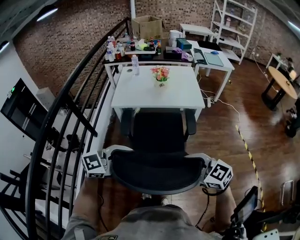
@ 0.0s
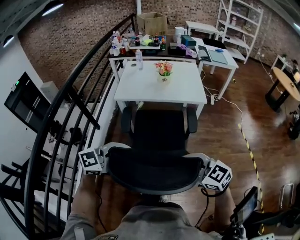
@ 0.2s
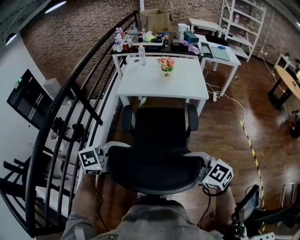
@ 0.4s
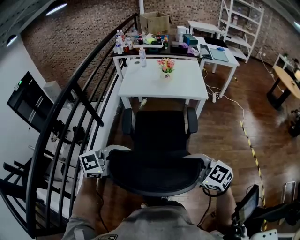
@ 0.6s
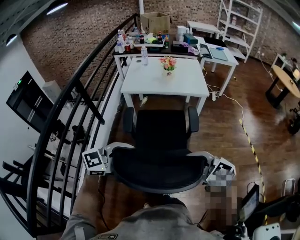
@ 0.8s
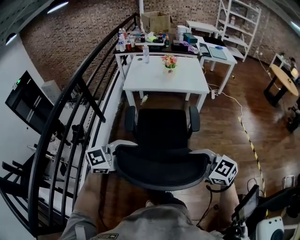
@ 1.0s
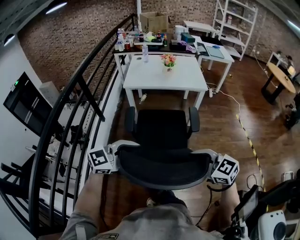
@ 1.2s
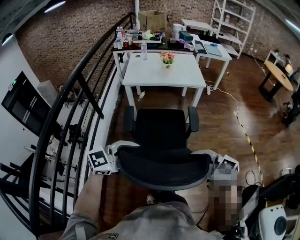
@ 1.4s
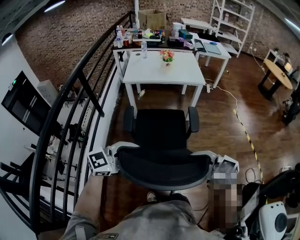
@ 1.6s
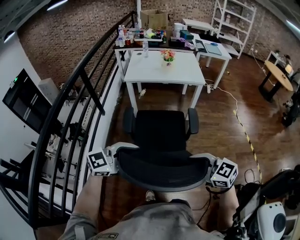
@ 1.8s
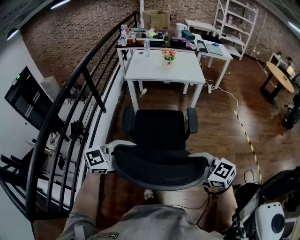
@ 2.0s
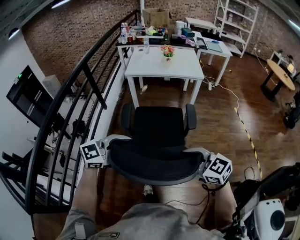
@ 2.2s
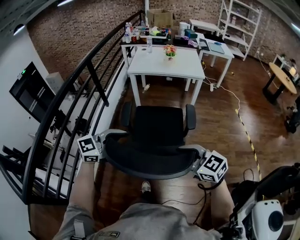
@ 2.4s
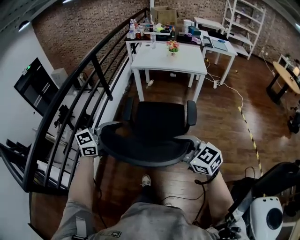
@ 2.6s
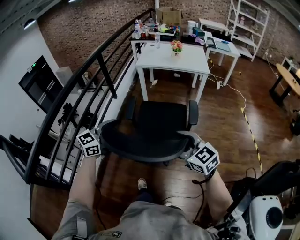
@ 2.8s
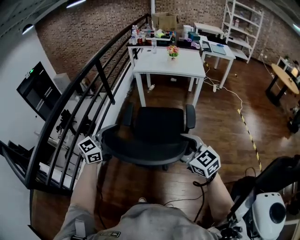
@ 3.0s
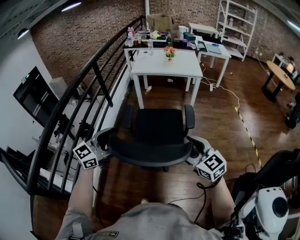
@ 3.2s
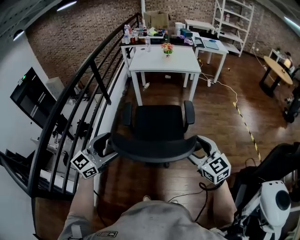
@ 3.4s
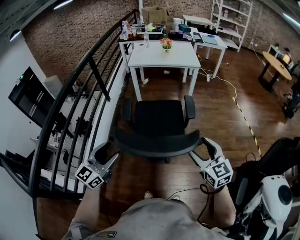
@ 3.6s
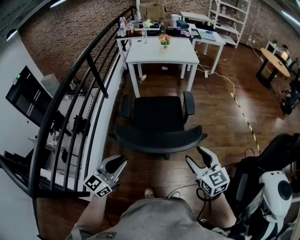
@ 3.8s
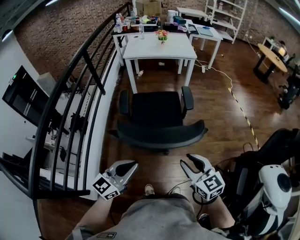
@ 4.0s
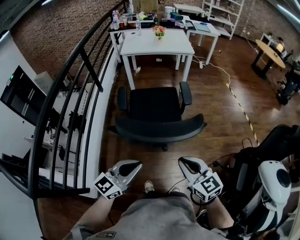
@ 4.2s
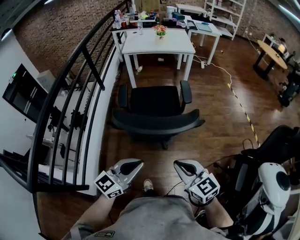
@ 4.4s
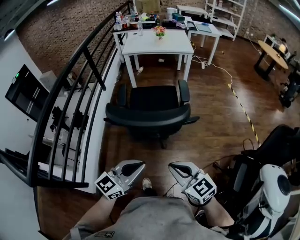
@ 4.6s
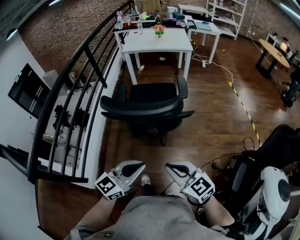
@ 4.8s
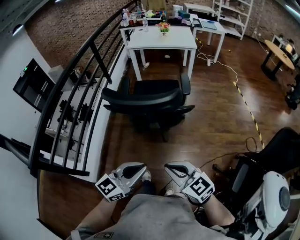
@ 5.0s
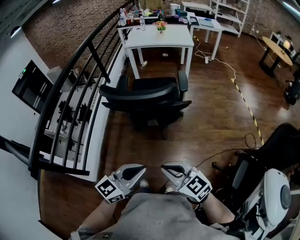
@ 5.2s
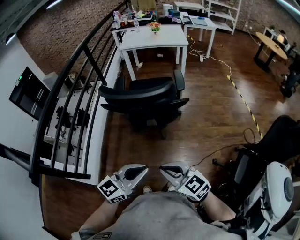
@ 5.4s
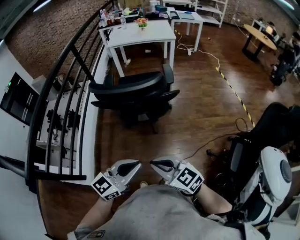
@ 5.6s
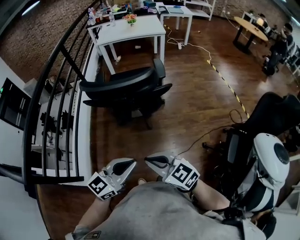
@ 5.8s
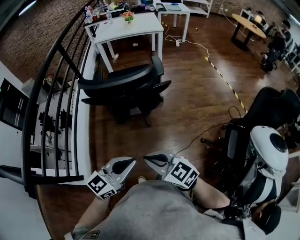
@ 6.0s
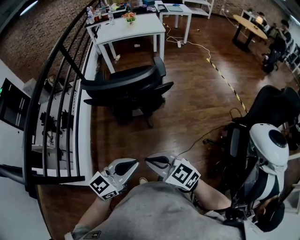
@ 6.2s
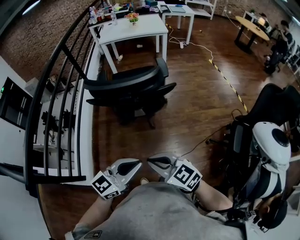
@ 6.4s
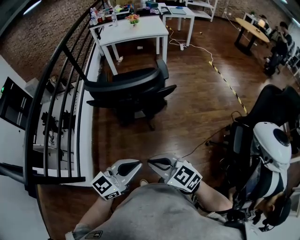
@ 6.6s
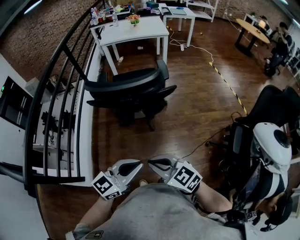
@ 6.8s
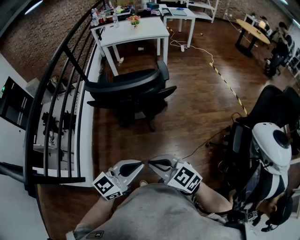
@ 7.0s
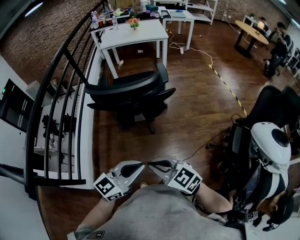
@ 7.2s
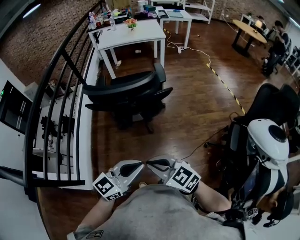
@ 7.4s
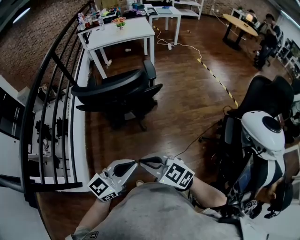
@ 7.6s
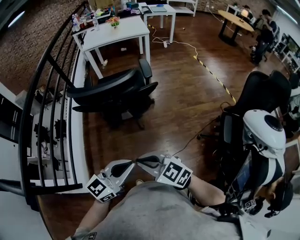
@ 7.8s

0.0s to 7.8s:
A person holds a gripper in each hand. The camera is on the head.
0.0s to 1.6s: The left gripper changes place by roughly 25 cm. Meanwhile the right gripper ends up about 25 cm from where it was.
1.6s to 3.2s: The left gripper moves about 15 cm, turns by roughly 30 degrees, and opens, while the right gripper moves about 15 cm, and opens.
3.2s to 4.6s: The left gripper goes approximately 25 cm backward and to the right, and closes up; the right gripper shifts some 20 cm backward, and closes.
4.6s to 6.2s: The grippers both shift backward by approximately 10 cm.
6.2s to 7.8s: There are only small adjustments of the grippers.

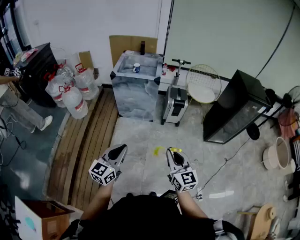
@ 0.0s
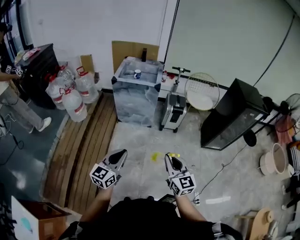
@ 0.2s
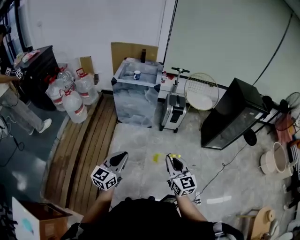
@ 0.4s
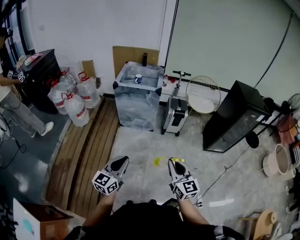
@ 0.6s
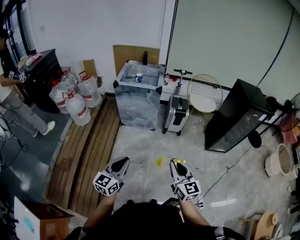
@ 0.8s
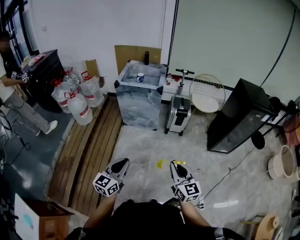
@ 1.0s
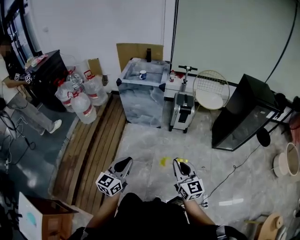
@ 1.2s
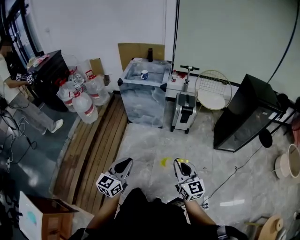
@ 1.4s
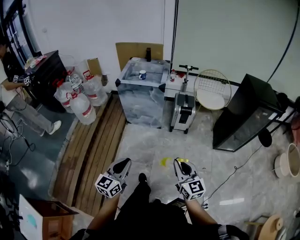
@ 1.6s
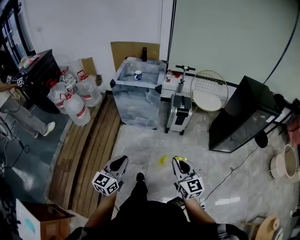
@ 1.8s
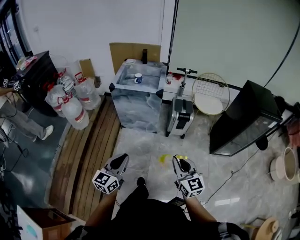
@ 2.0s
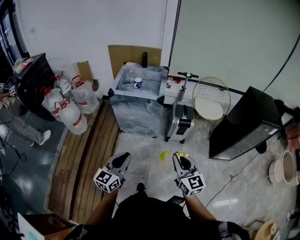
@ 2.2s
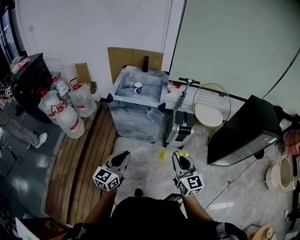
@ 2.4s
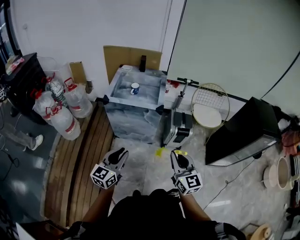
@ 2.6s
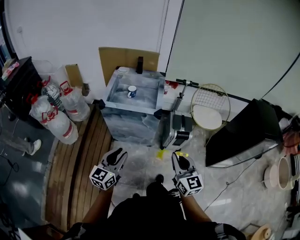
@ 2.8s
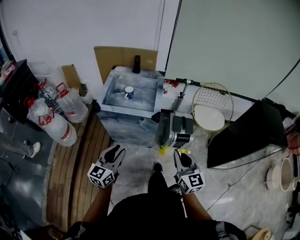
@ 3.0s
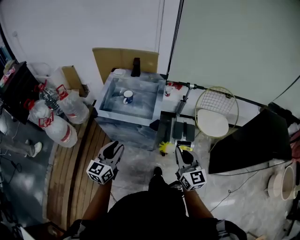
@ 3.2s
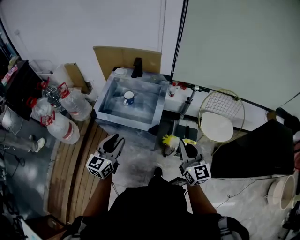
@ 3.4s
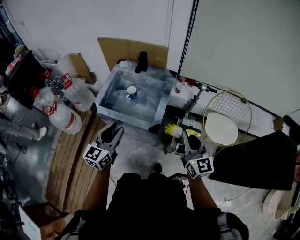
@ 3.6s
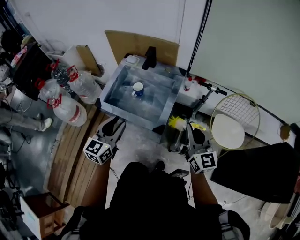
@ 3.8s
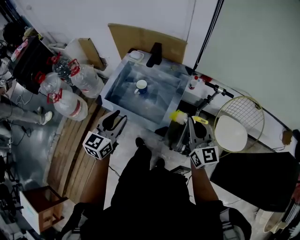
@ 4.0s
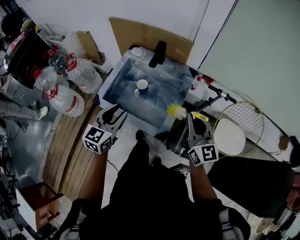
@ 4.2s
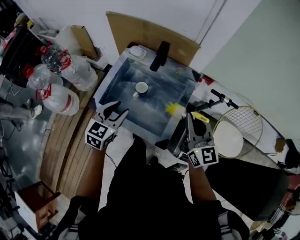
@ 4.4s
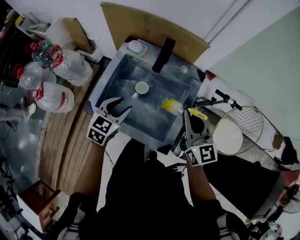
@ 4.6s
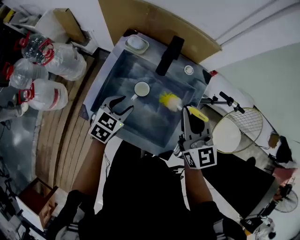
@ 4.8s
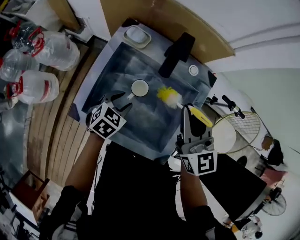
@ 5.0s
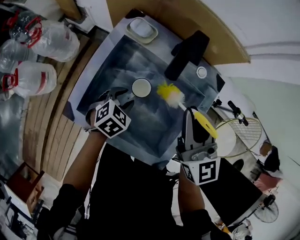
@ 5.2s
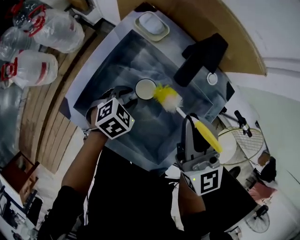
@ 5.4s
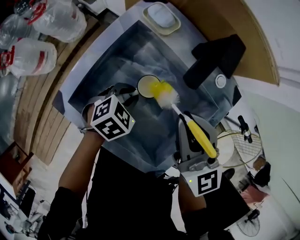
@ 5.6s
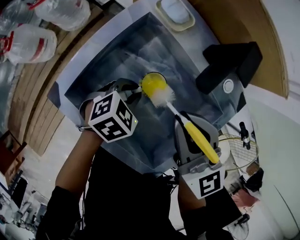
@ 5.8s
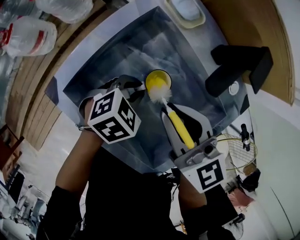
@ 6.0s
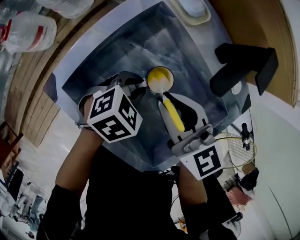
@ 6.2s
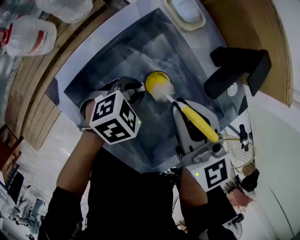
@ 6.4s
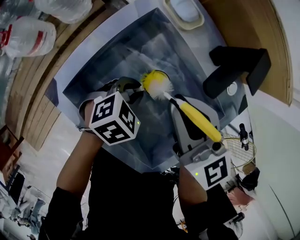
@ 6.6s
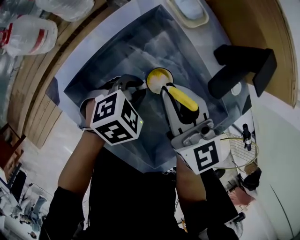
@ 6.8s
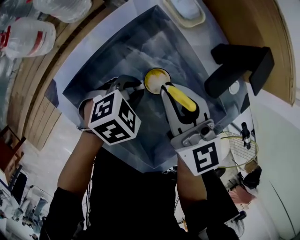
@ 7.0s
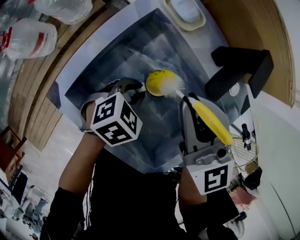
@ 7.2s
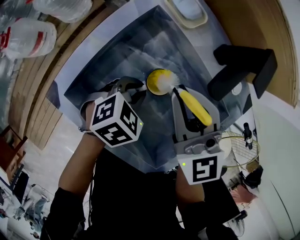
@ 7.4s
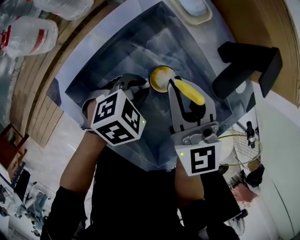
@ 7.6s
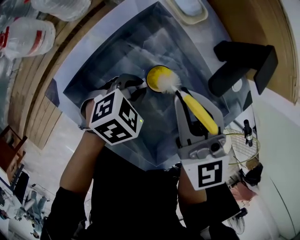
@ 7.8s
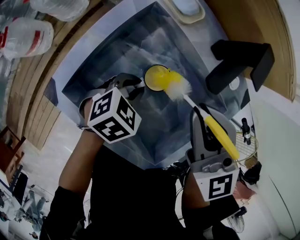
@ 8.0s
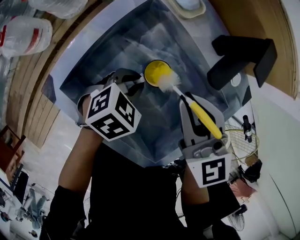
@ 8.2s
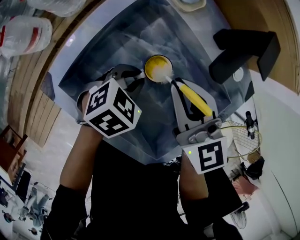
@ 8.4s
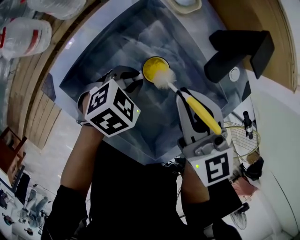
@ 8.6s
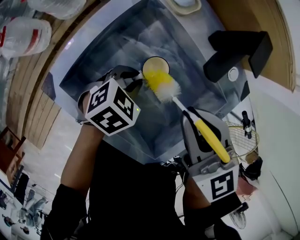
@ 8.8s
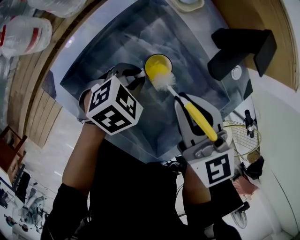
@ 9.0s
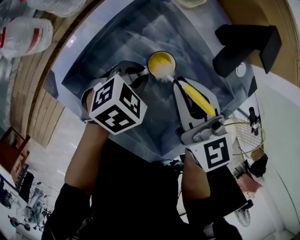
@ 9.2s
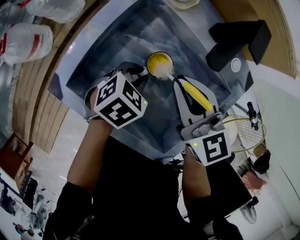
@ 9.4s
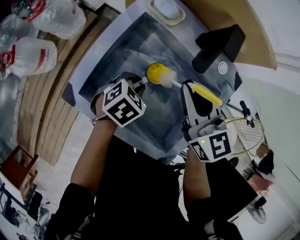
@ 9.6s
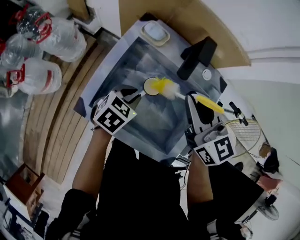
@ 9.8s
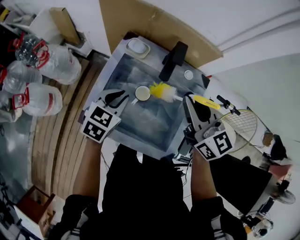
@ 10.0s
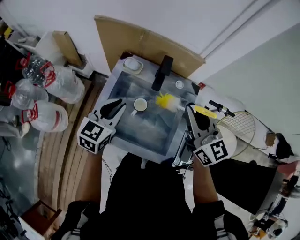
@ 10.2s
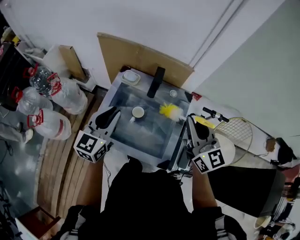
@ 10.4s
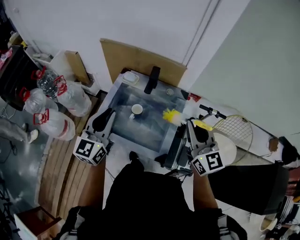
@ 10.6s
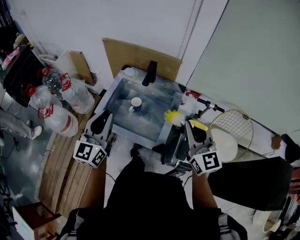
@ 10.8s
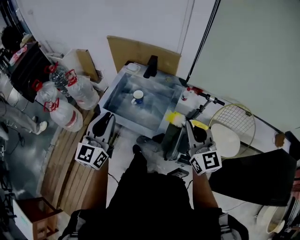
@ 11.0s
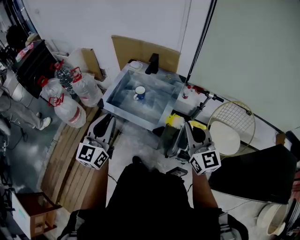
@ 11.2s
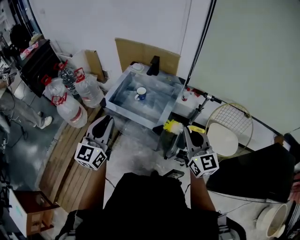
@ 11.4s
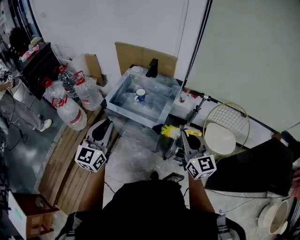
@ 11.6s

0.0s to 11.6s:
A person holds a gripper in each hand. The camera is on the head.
0.0s to 1.4s: The right gripper travels to the right by approximately 5 cm; the left gripper ends up some 5 cm from where it was.
1.4s to 2.8s: Both grippers are carried forward, some 40 cm. The left gripper opens.
2.8s to 4.4s: The two grippers travel together, forward, approximately 50 cm. The left gripper rotates roughly 30 degrees.
4.4s to 5.8s: The right gripper moves to the left, forward and downward, roughly 30 cm, and turns by approximately 30 degrees, while the left gripper is displaced downward and forward by about 30 cm, changes its angle by roughly 30 degrees, and closes its fingers.
5.8s to 7.2s: The right gripper swings up and down, approximately 10 cm each way, with 3 reversals.
7.2s to 8.8s: The right gripper goes up and down, approximately 10 cm each way, reversing 3 times.
8.8s to 10.2s: The right gripper moves upward and to the right, about 20 cm, and rotates approximately 30 degrees. Meanwhile the left gripper goes roughly 30 cm upward, and tips its fingers upward by some 30 degrees.
10.2s to 11.6s: Both grippers are carried backward, about 40 cm. The left gripper moves upward, about 20 cm, and swivels some 30 degrees.

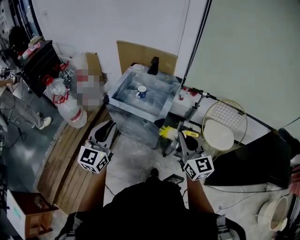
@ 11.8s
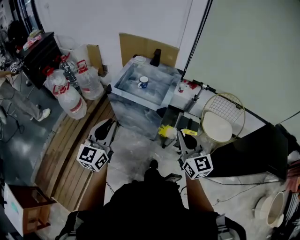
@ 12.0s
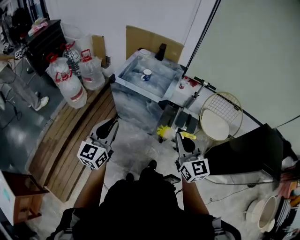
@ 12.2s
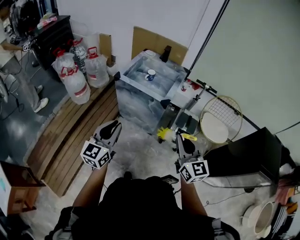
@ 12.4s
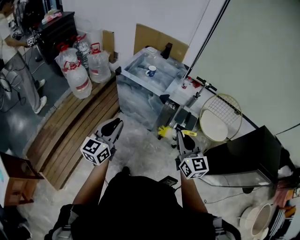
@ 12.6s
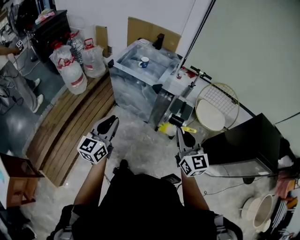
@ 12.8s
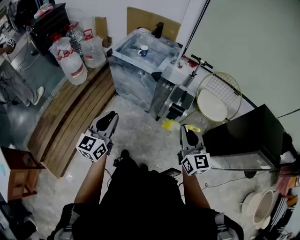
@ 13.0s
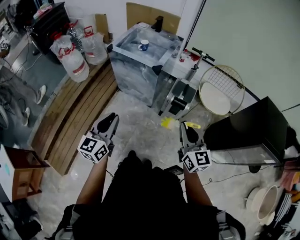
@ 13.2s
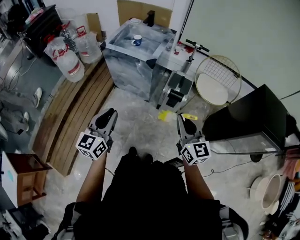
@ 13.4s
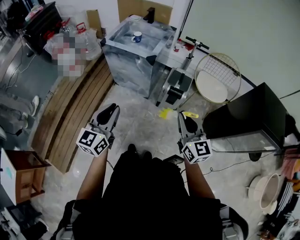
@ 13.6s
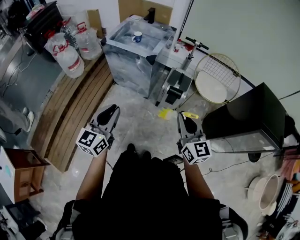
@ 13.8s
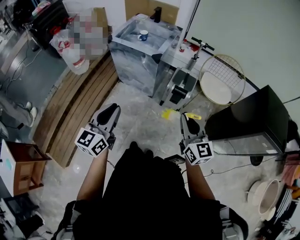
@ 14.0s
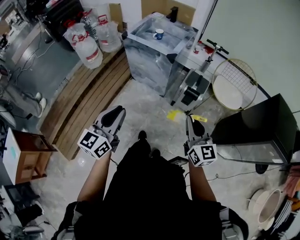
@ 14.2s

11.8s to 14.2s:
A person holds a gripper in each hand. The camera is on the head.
11.8s to 13.0s: The two grippers go approximately 25 cm backward.
13.0s to 14.2s: The right gripper moves backward, roughly 5 cm; the left gripper heads backward, covering about 10 cm.

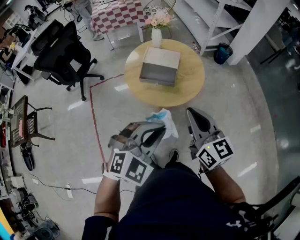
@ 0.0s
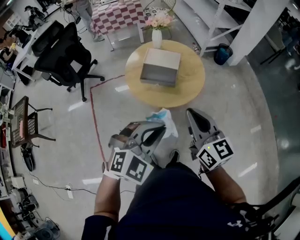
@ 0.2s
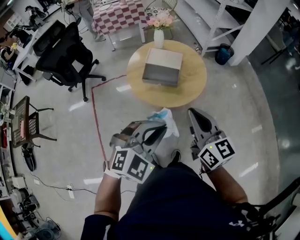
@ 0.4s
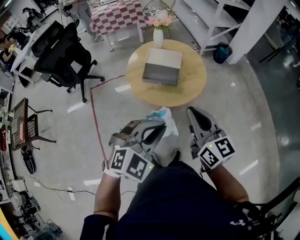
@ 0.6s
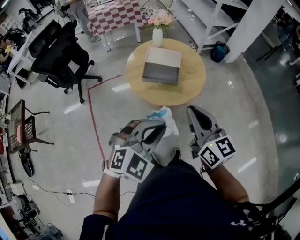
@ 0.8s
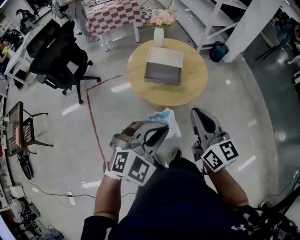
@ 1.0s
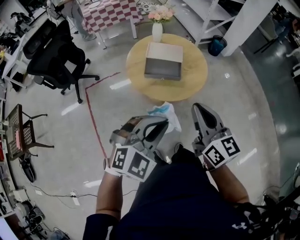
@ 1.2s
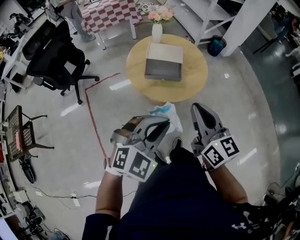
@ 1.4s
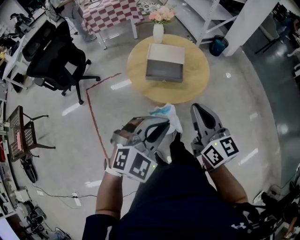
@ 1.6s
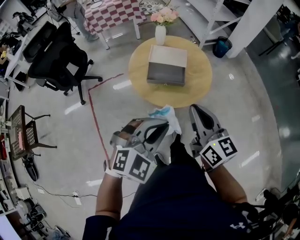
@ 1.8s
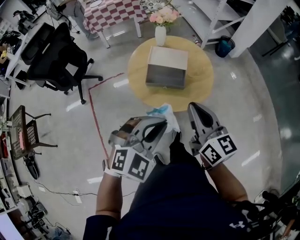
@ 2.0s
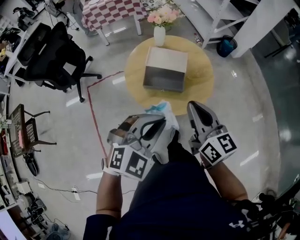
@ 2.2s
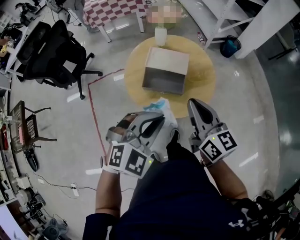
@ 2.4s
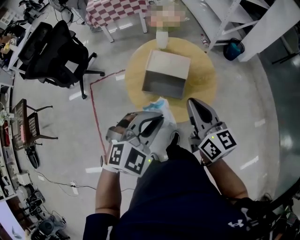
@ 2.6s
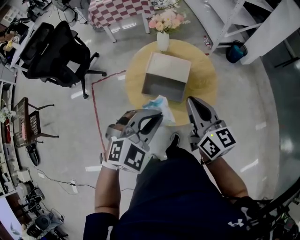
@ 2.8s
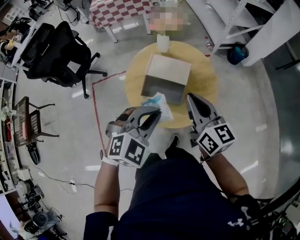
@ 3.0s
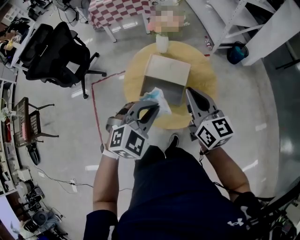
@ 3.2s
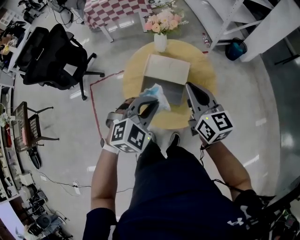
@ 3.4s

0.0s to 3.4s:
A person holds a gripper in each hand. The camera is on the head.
0.0s to 1.6s: The two grippers go about 5 cm to the left.
1.6s to 3.4s: The grippers both shift forward by some 30 cm.
